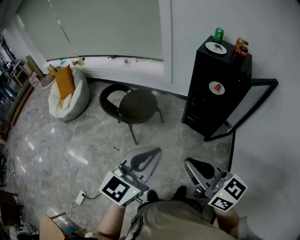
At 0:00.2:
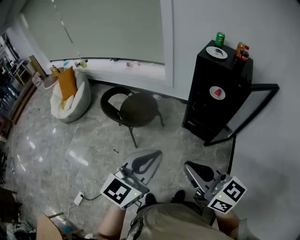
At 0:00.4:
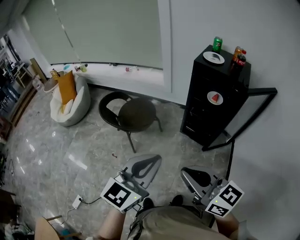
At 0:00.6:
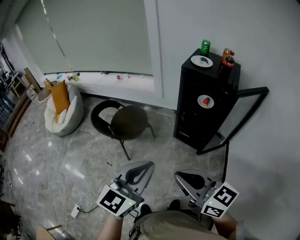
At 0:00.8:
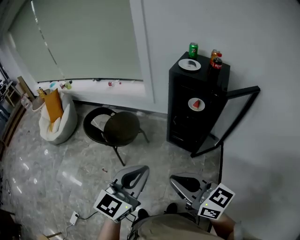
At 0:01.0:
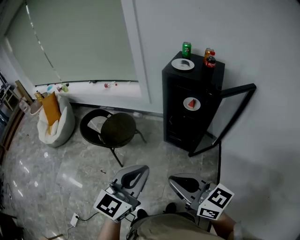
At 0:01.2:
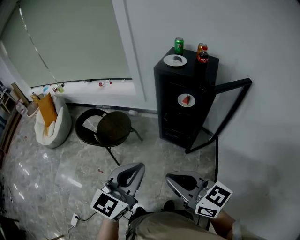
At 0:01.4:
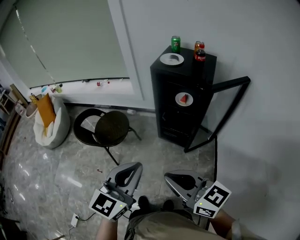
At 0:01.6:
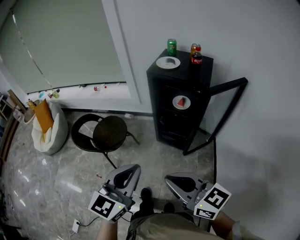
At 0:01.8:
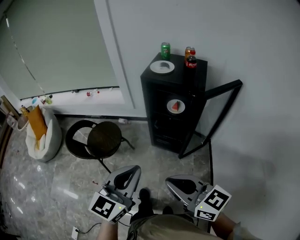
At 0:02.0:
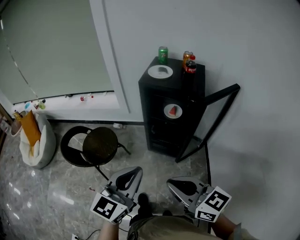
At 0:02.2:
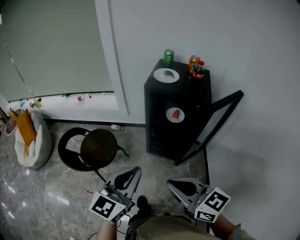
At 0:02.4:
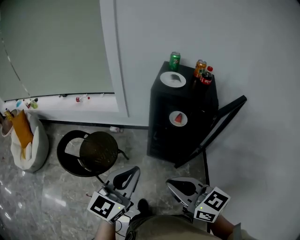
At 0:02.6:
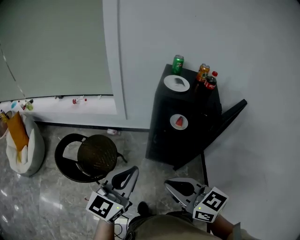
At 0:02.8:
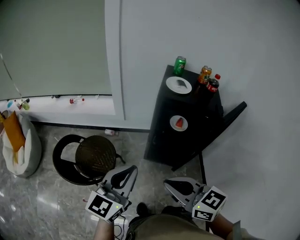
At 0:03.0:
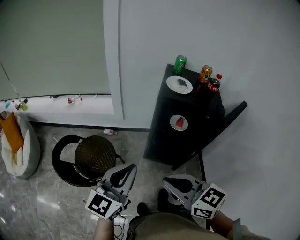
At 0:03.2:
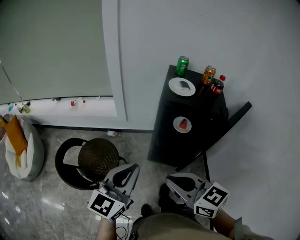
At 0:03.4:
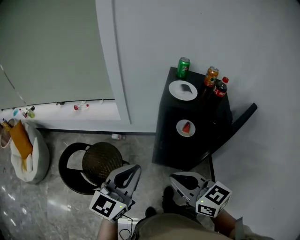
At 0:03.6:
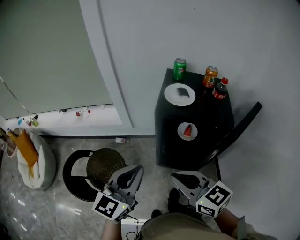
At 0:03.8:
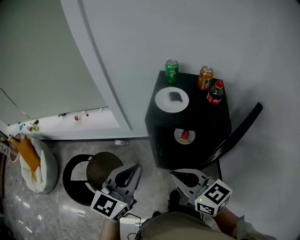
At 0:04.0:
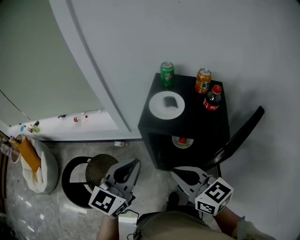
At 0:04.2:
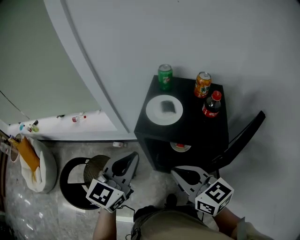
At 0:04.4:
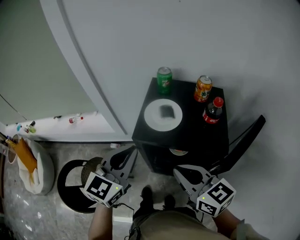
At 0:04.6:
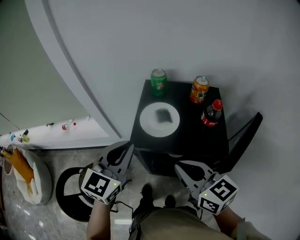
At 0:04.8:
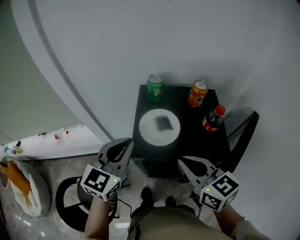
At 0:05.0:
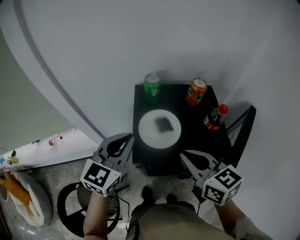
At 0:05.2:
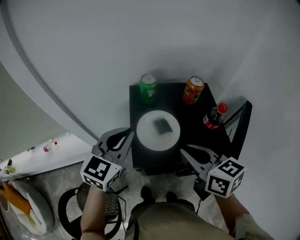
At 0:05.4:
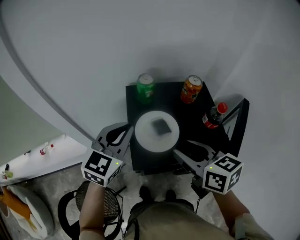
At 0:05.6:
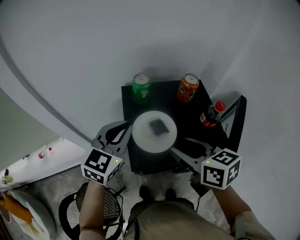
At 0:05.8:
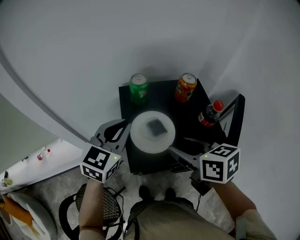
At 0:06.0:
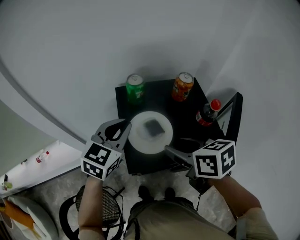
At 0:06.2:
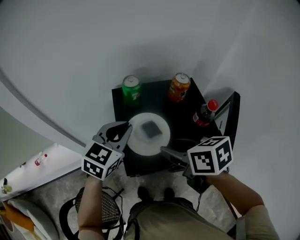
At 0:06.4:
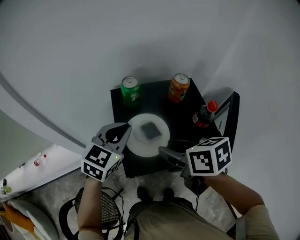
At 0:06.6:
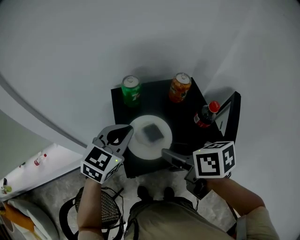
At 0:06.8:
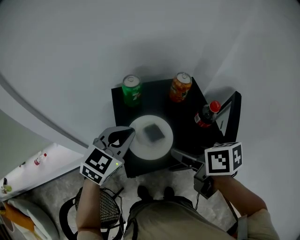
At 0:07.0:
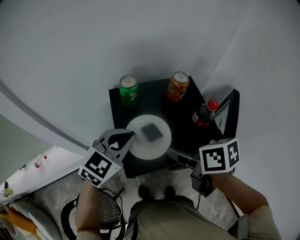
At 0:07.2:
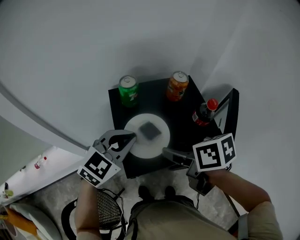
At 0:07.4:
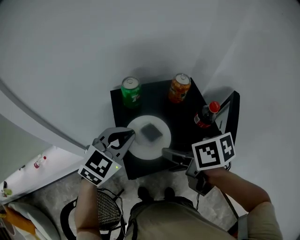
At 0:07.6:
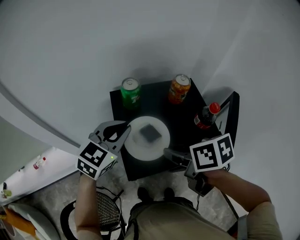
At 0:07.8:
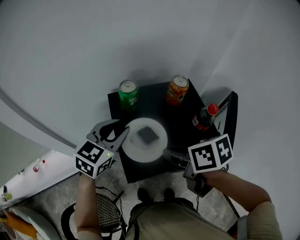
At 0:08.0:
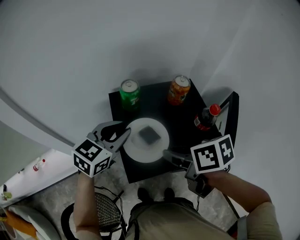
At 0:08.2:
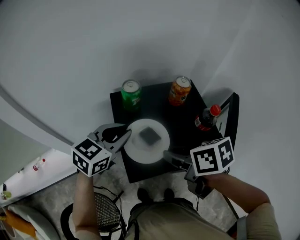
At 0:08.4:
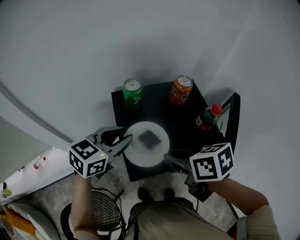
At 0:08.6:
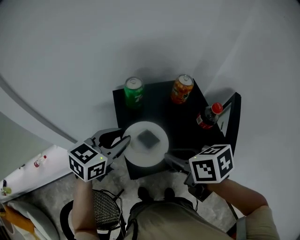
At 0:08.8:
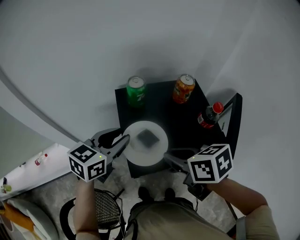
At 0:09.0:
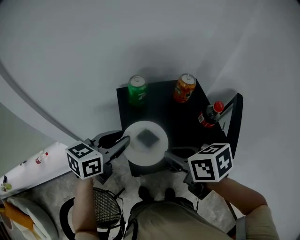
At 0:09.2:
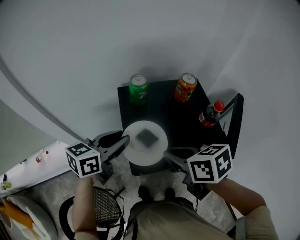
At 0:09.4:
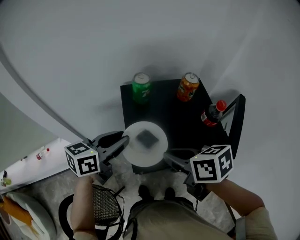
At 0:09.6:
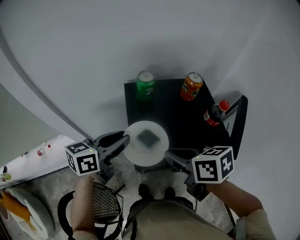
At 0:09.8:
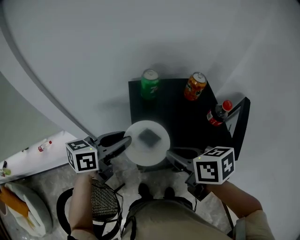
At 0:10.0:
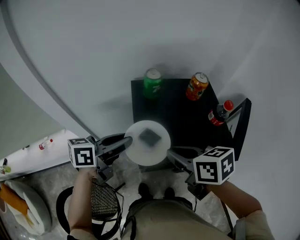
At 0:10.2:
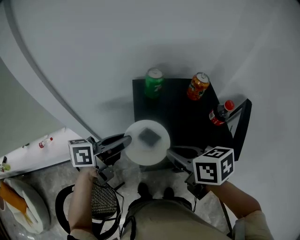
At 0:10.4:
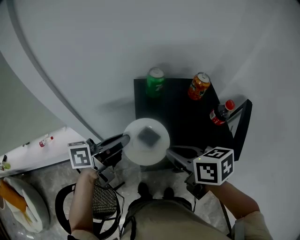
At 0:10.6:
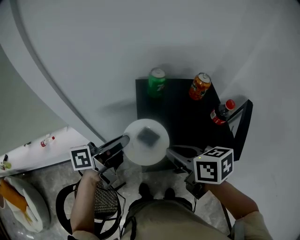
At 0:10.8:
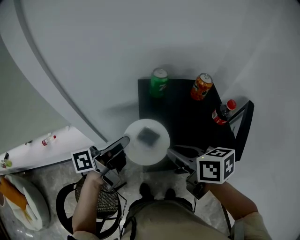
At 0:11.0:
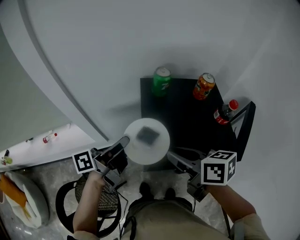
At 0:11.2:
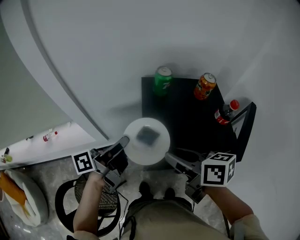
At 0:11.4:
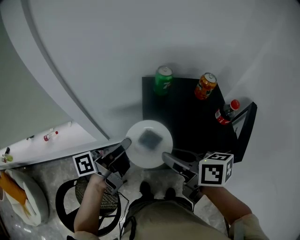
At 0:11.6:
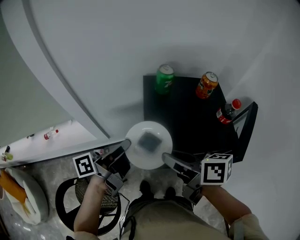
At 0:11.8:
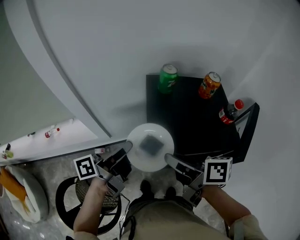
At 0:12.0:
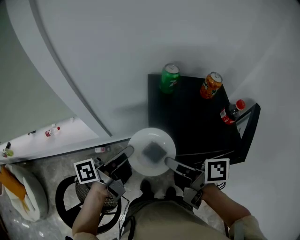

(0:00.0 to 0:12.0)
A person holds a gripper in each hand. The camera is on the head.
0:00.0 - 0:01.6: The grippers both shift to the right by approximately 15 cm.
0:01.6 - 0:03.0: The grippers both shift forward and to the left by roughly 25 cm.
0:03.0 - 0:04.4: Both grippers travel together forward and to the right, about 30 cm.
0:04.4 - 0:06.0: Both grippers travel together forward, roughly 20 cm. The left gripper rotates some 30 degrees, while the right gripper swivels approximately 40 degrees, and opens.
0:07.6 - 0:09.0: The left gripper changes place by approximately 5 cm, turns by some 30 degrees, and opens its fingers.
0:09.0 - 0:10.4: The left gripper ends up some 5 cm from where it was, and changes its angle by approximately 40 degrees.
0:10.4 - 0:12.0: The left gripper heads backward, covering roughly 5 cm, and swivels approximately 30 degrees, while the right gripper shifts by some 5 cm, and changes its angle by about 40 degrees.

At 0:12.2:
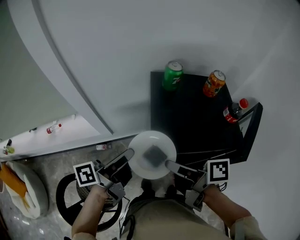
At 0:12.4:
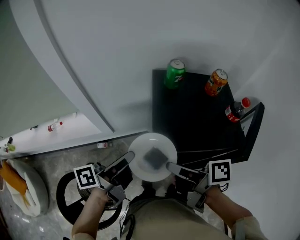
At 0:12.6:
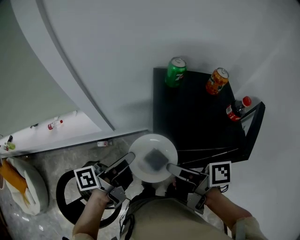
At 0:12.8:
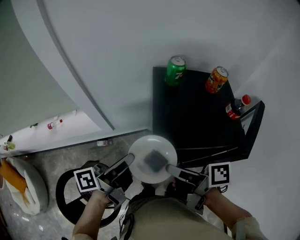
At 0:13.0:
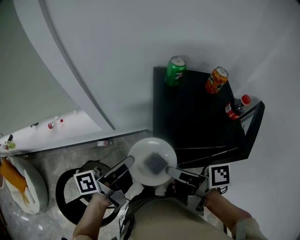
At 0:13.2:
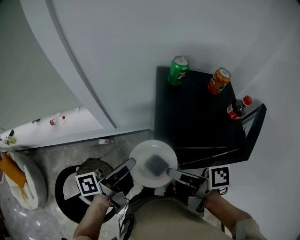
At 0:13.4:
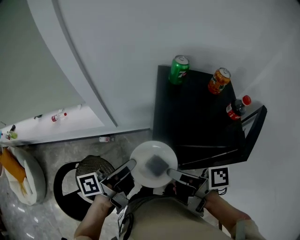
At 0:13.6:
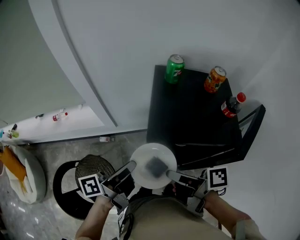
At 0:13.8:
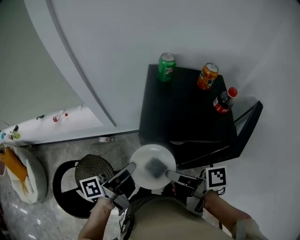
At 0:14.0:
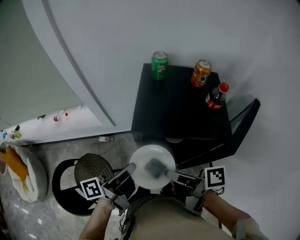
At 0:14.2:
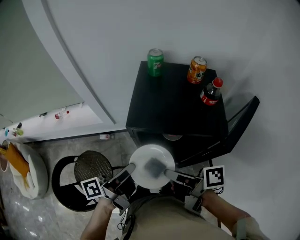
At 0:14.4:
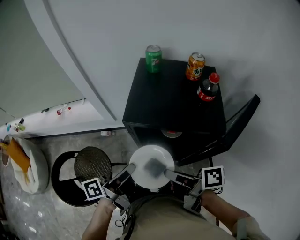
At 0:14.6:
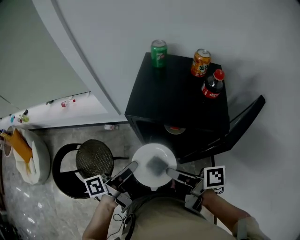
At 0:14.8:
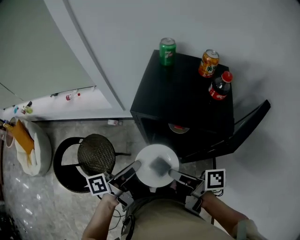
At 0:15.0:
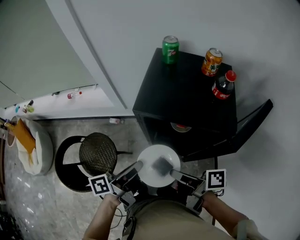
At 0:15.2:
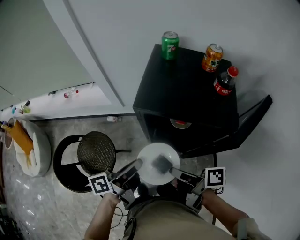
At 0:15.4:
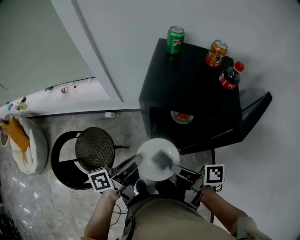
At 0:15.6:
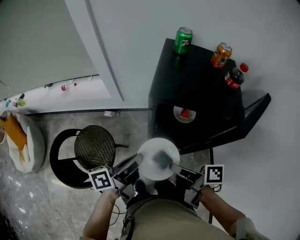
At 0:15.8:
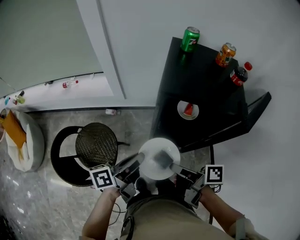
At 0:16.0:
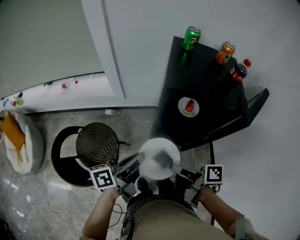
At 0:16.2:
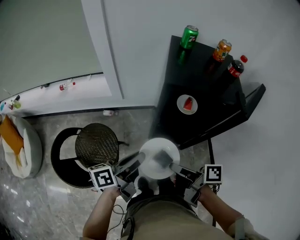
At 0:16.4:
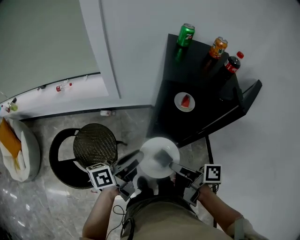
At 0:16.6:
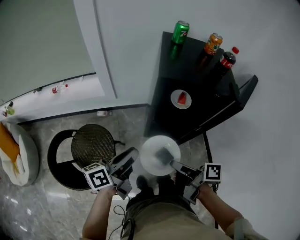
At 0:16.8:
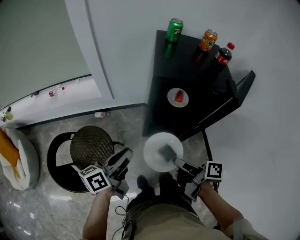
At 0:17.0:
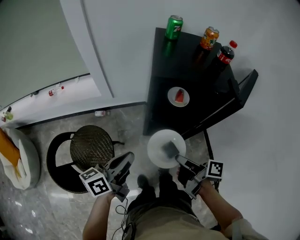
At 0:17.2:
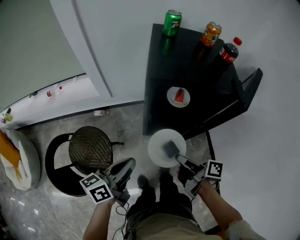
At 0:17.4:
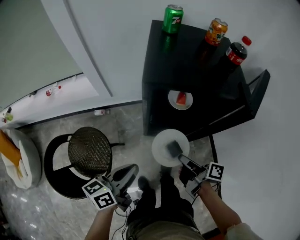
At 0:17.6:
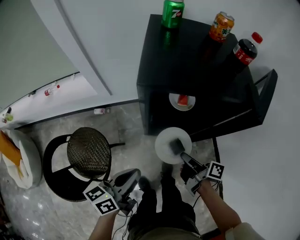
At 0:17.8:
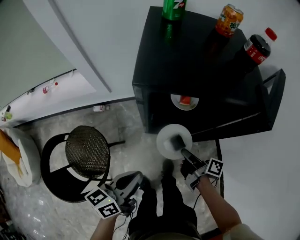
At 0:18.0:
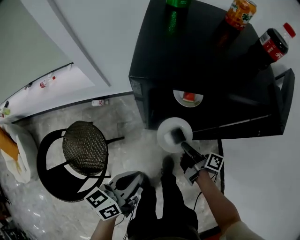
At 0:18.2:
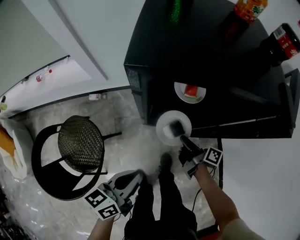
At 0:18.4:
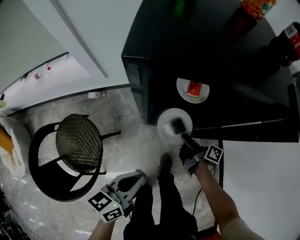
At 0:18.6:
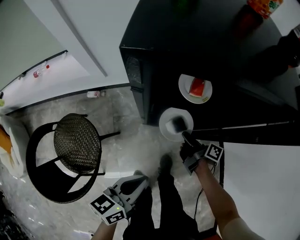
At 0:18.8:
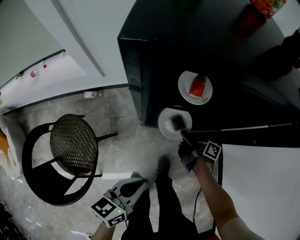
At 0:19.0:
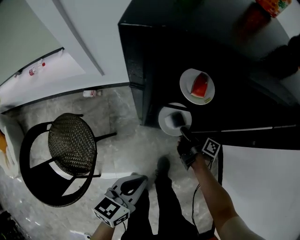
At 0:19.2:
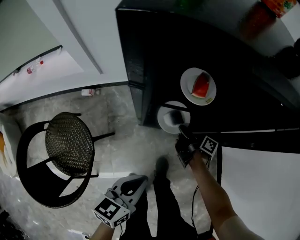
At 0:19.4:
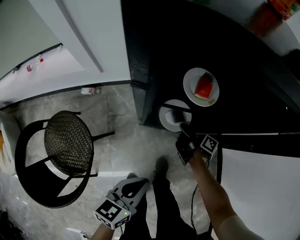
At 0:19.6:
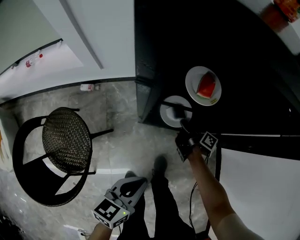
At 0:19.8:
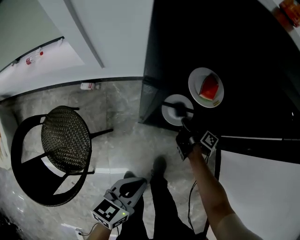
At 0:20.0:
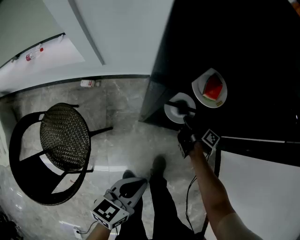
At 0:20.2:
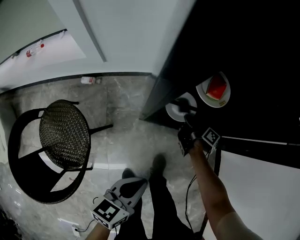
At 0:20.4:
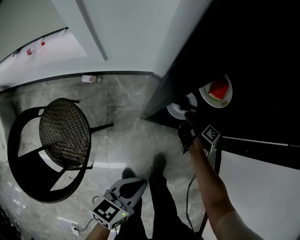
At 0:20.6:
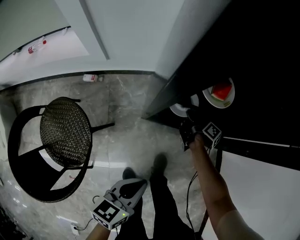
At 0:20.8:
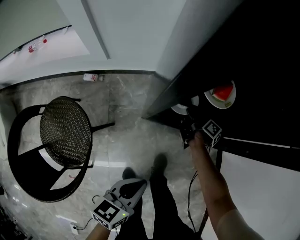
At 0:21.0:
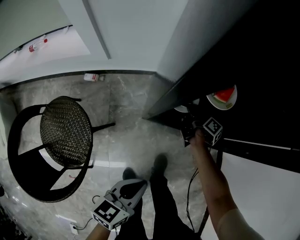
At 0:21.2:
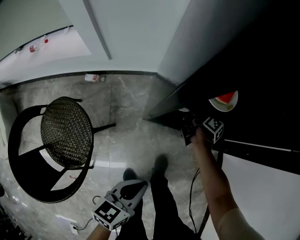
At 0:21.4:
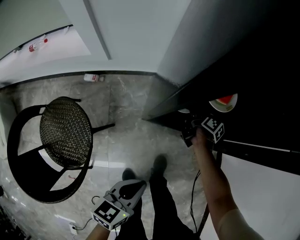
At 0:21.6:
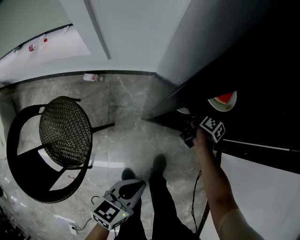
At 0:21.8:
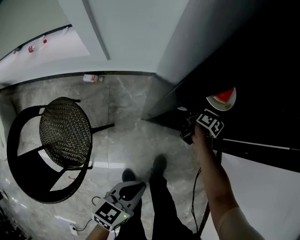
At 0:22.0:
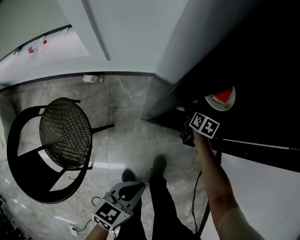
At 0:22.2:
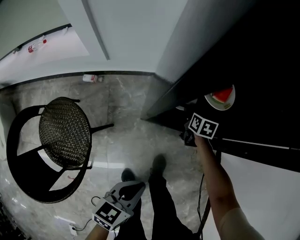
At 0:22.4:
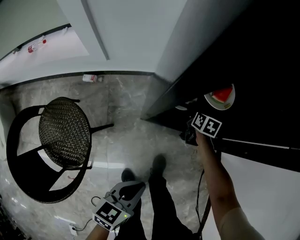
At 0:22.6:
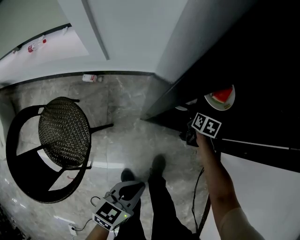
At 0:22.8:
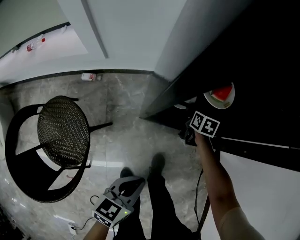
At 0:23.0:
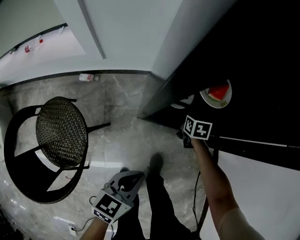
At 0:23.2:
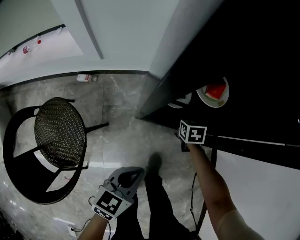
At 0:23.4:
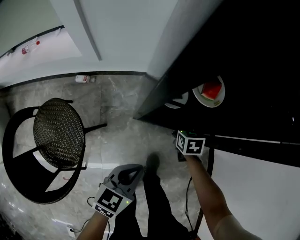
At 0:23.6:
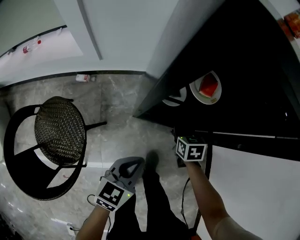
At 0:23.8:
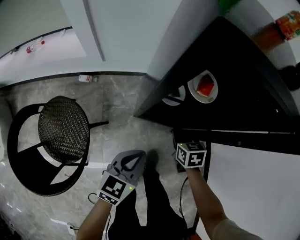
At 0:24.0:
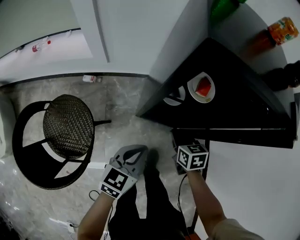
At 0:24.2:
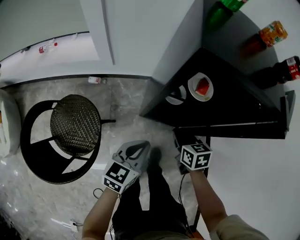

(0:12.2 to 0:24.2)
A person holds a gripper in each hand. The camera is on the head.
0:12.2 - 0:13.8: Both grippers travel together backward, about 10 cm.
0:13.8 - 0:15.2: The left gripper shifts about 10 cm backward; the right gripper goes some 10 cm backward and downward.
0:15.2 - 0:16.6: The grippers both shift to the left and backward by roughly 15 cm.
0:16.6 - 0:18.2: The right gripper moves downward, forward and to the right, some 35 cm. The left gripper heads downward and to the right, covering approximately 20 cm, and rotates roughly 20 degrees.
0:18.2 - 0:19.8: The left gripper goes approximately 10 cm downward, while the right gripper shifts approximately 15 cm downward and forward.
0:19.8 - 0:21.2: The right gripper heads forward, covering approximately 5 cm.
0:21.2 - 0:22.6: The right gripper rotates around the line of its fingers by about 50 degrees, counterclockwise from behind, and opens its fingers.
0:22.6 - 0:24.2: The left gripper shifts roughly 10 cm upward and forward, while the right gripper shifts some 30 cm backward and upward, changes its angle by approximately 20 degrees, and closes its fingers.
